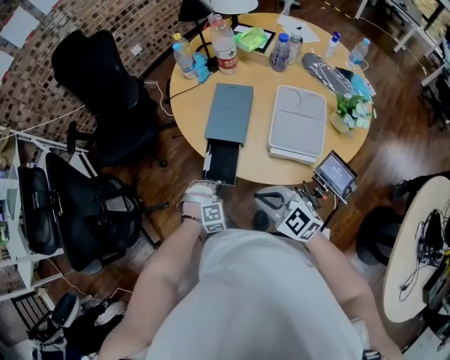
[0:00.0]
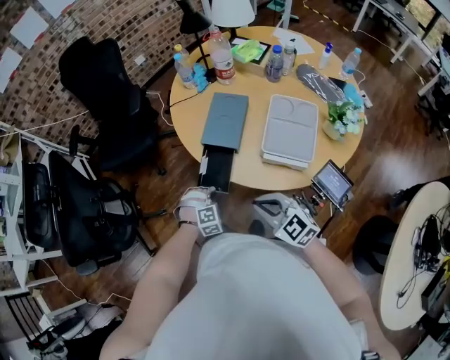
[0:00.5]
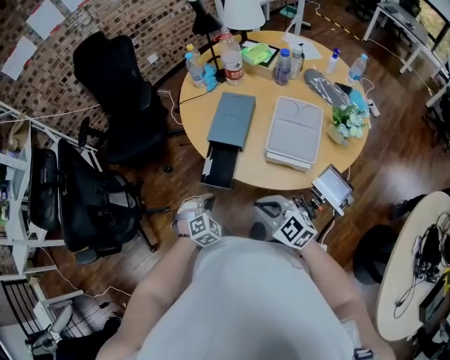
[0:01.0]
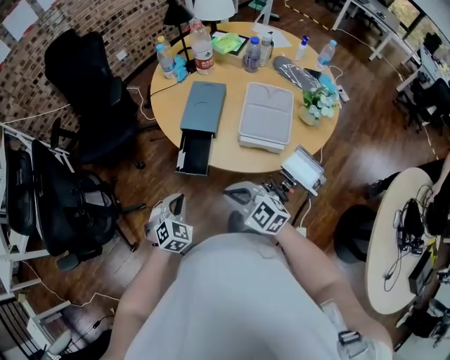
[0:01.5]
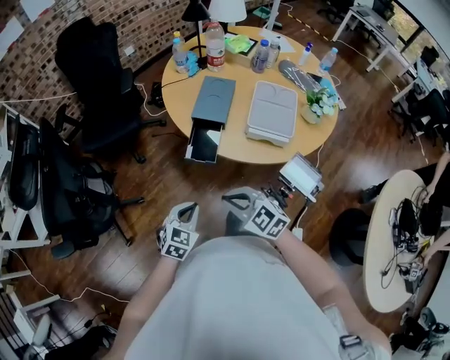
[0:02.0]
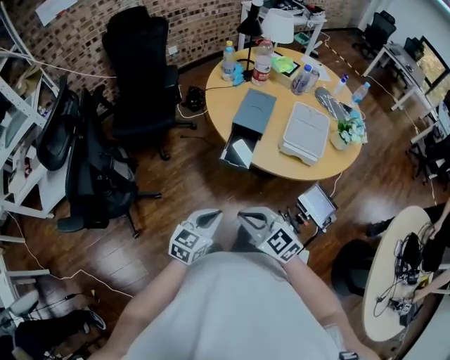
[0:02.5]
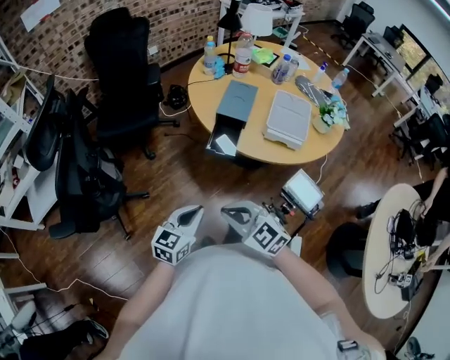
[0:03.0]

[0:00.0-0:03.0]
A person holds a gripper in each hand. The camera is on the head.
0:00.0 to 0:01.5: The right gripper changes place by roughly 5 cm. Meanwhile the left gripper moves upward, backward and to the left, approximately 15 cm, and rolls counterclockwise, seen from behind, by approximately 40 degrees.
0:01.5 to 0:03.0: The left gripper is displaced backward, to the left and upward by roughly 20 cm, and changes its angle by about 50 degrees. The right gripper is displaced to the left and backward by about 20 cm.

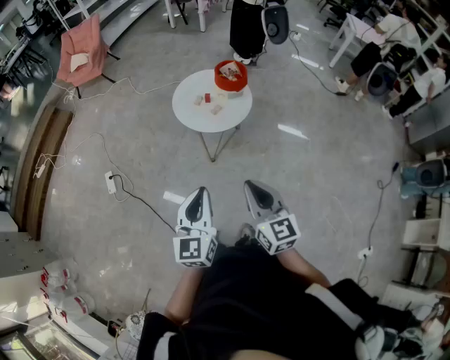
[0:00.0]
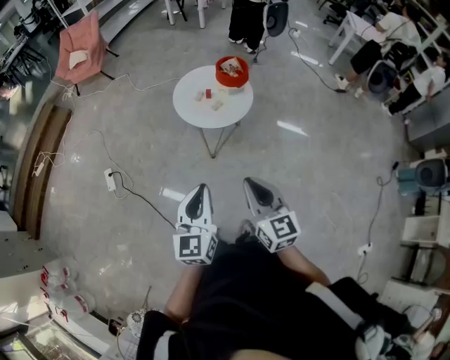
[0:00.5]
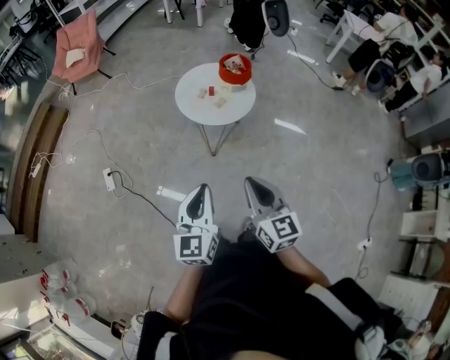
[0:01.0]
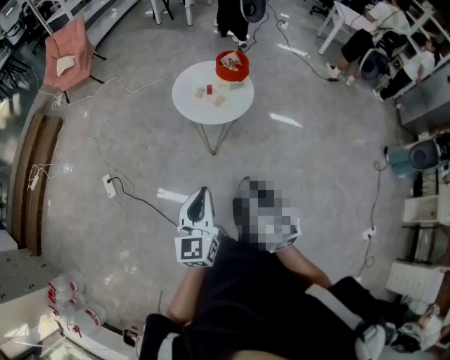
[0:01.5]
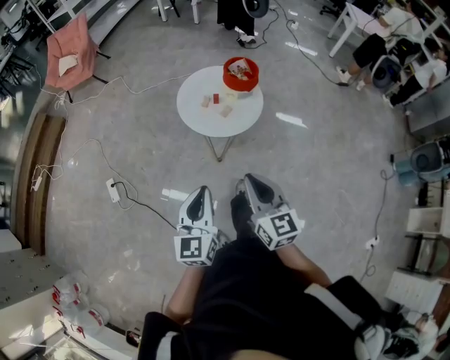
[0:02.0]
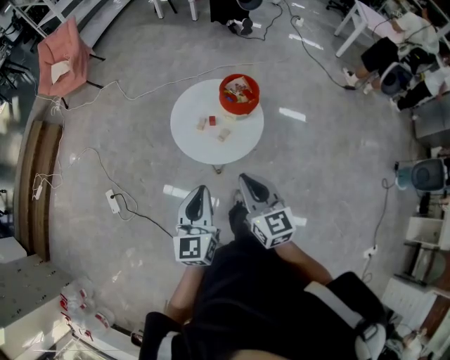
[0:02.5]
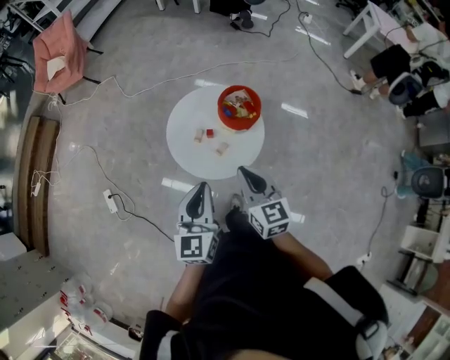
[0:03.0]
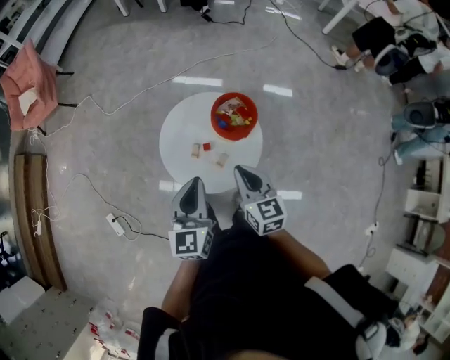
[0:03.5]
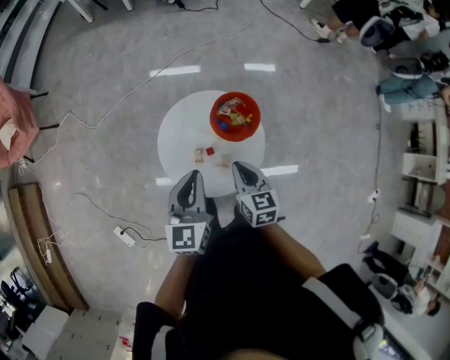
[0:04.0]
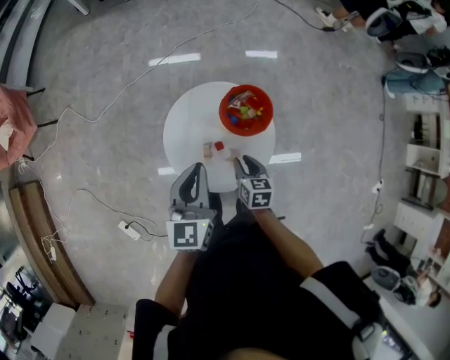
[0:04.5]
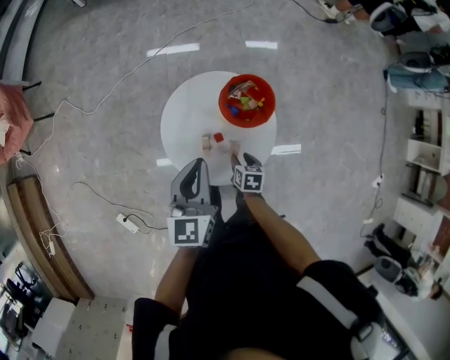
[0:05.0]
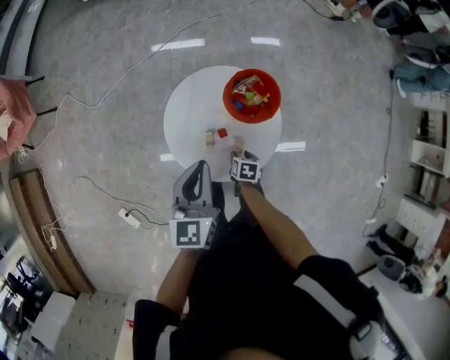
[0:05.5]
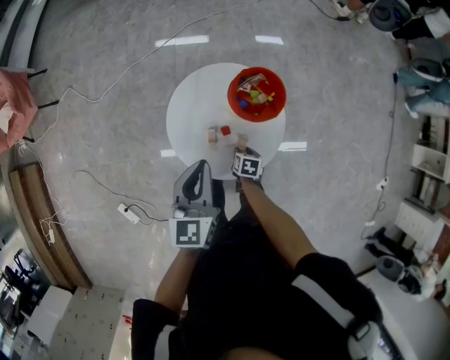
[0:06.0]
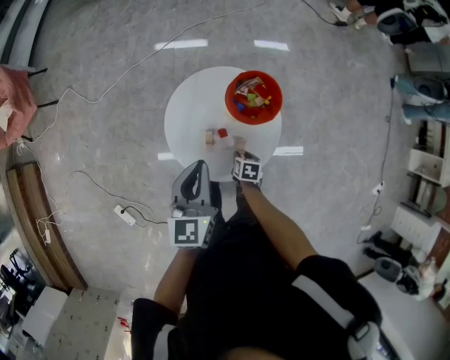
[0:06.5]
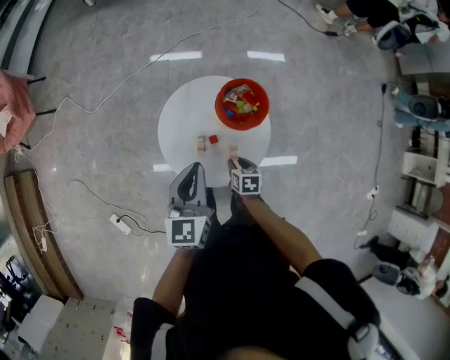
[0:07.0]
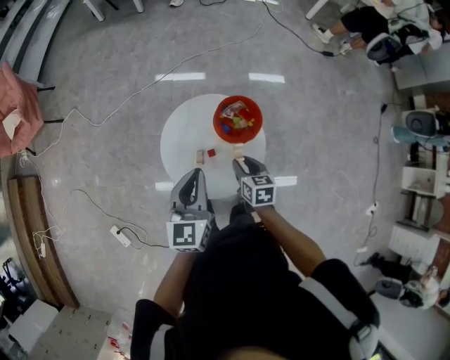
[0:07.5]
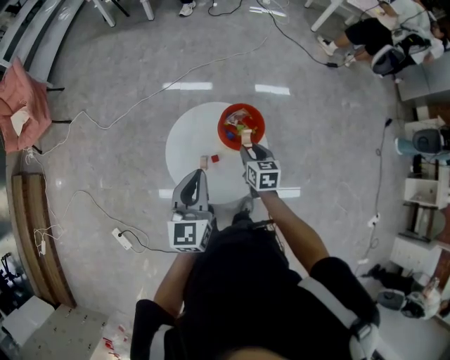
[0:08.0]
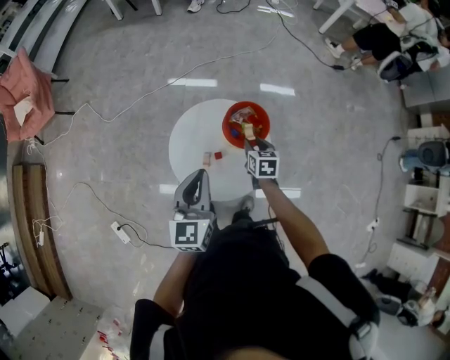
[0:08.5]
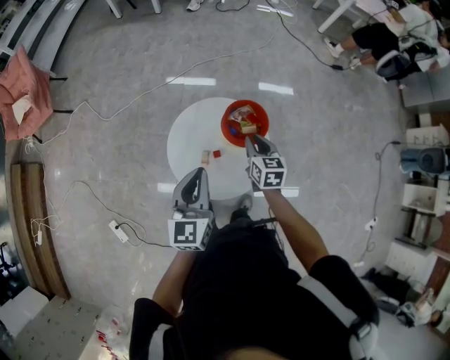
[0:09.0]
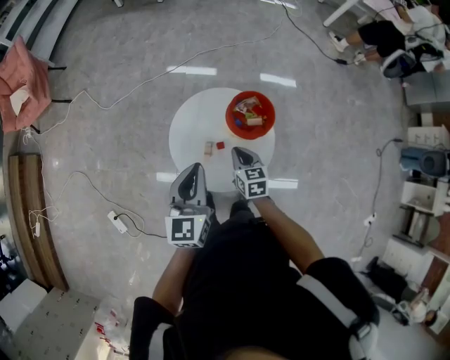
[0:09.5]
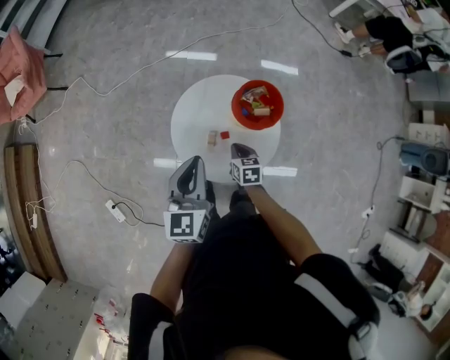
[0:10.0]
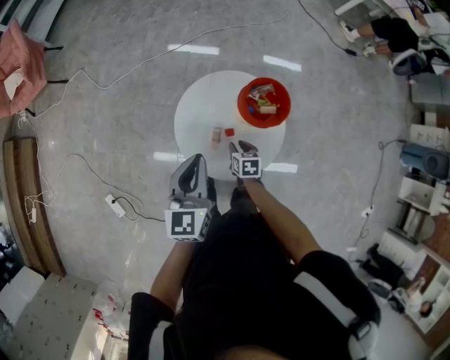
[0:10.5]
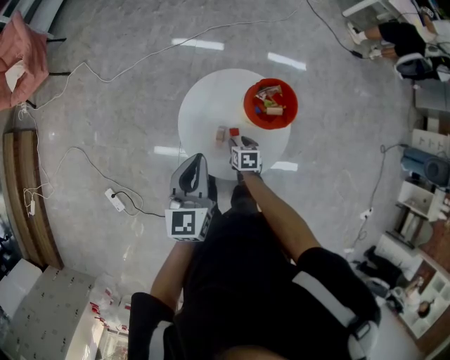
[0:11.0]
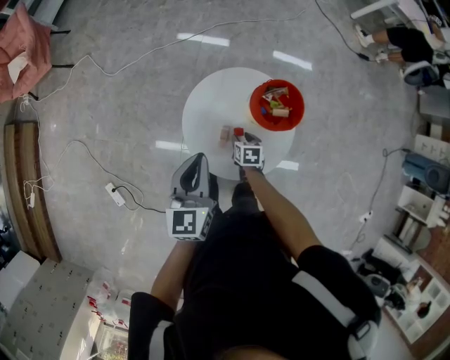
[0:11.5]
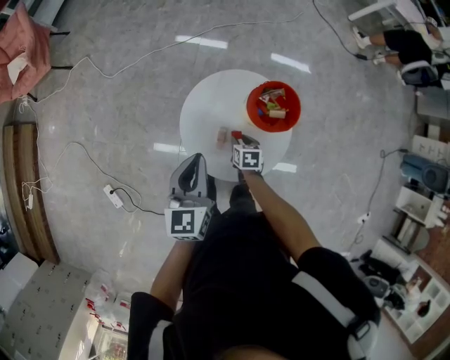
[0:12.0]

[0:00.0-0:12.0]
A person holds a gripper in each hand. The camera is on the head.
0:00.0 to 0:02.0: The grippers both shift forward and to the left by about 10 cm.
0:02.0 to 0:04.0: The right gripper is displaced forward and downward by approximately 40 cm, and rotates about 30 degrees. The left gripper travels forward by some 50 cm, and turns by about 20 degrees.
0:04.0 to 0:06.0: The right gripper travels downward by roughly 30 cm, points its fingers some 40 degrees further downward, and opens up.
0:06.0 to 0:08.0: The right gripper travels upward and forward by roughly 25 cm, and turns by approximately 40 degrees. Meanwhile the left gripper goes about 5 cm upward.
0:08.0 to 0:10.0: The left gripper is displaced to the left by approximately 5 cm; the right gripper goes up and down, roughly 15 cm each way, reversing 2 times, and closes up.
0:10.0 to 0:12.0: The right gripper moves downward, some 5 cm, and opens.

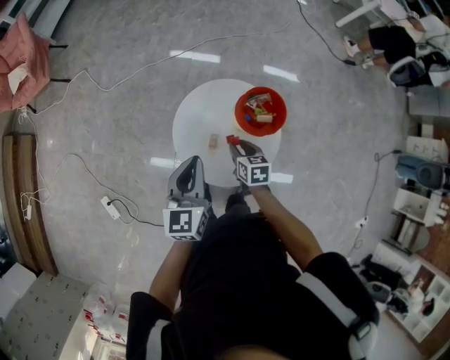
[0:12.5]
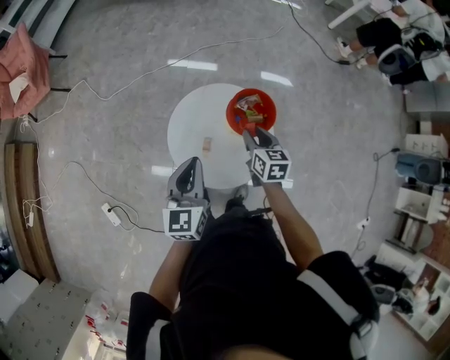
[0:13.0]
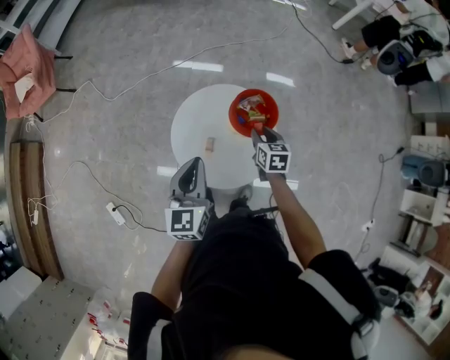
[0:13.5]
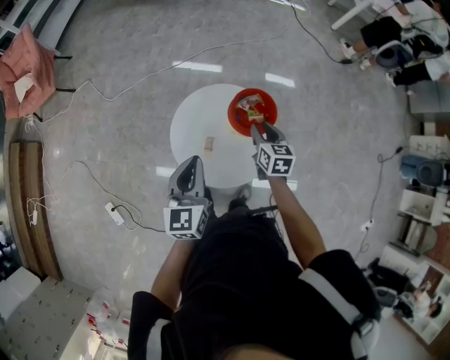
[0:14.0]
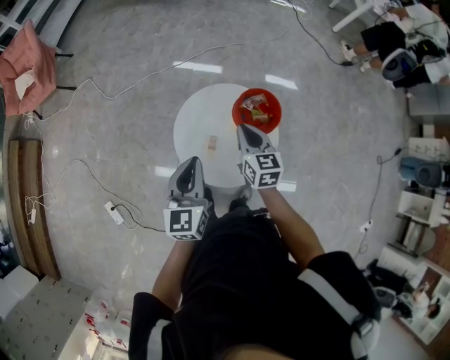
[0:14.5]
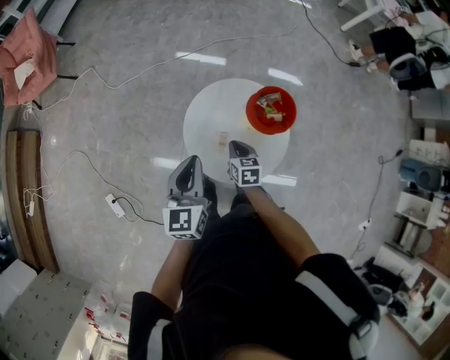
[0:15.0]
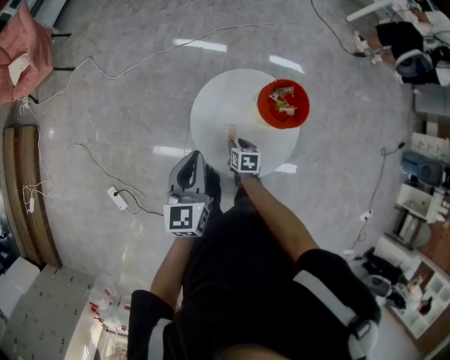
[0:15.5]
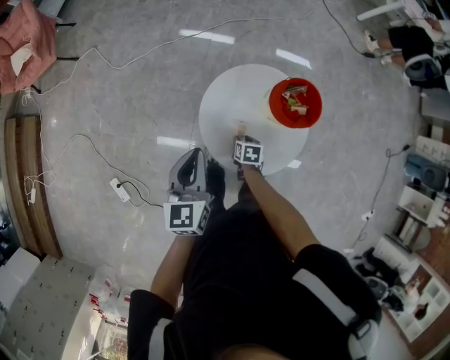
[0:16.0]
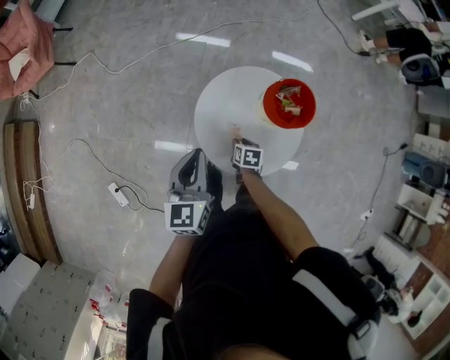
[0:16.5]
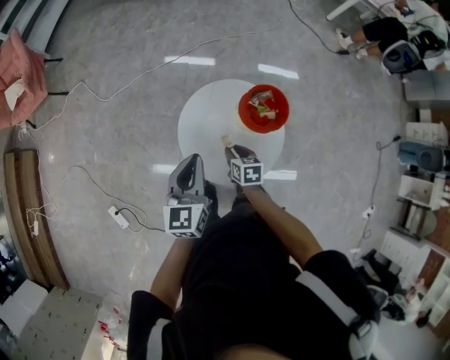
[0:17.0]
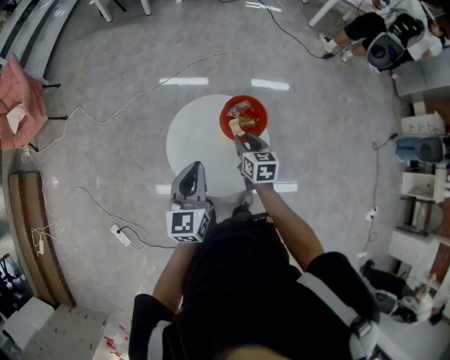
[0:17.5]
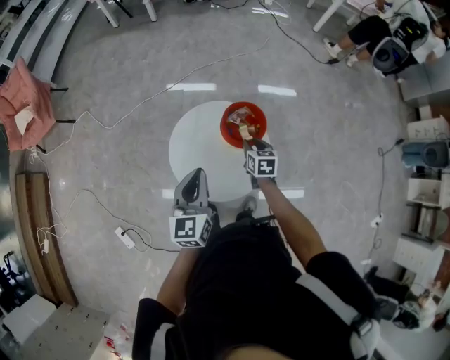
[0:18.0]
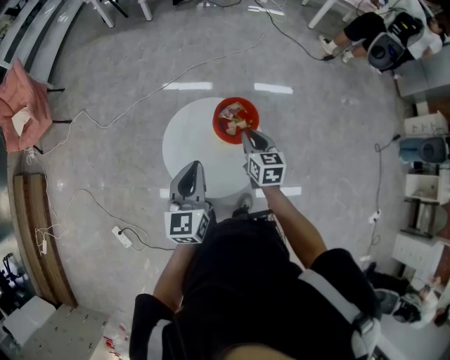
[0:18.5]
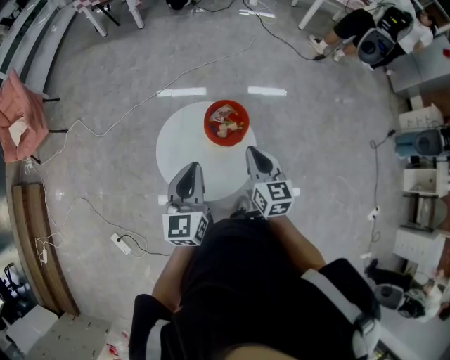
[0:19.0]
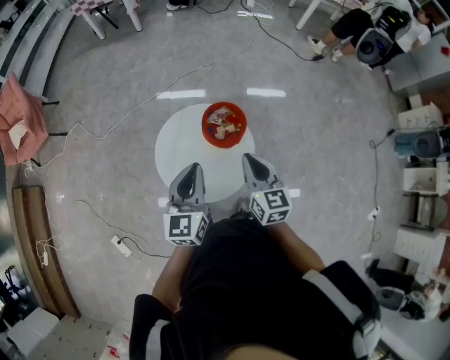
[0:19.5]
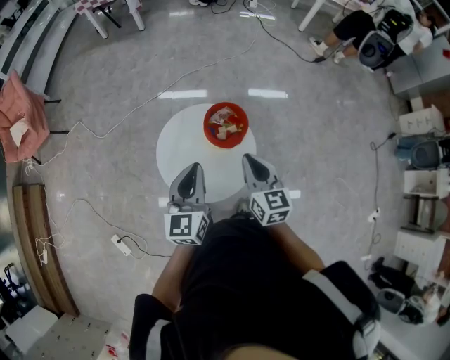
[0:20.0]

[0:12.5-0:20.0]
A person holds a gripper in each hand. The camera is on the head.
0:12.5 to 0:14.5: The right gripper swings up and down, some 15 cm each way, with 2 reversals, rotates some 30 degrees, and closes.
0:14.5 to 0:16.5: The right gripper heads downward, covering approximately 30 cm, angles its fingers downward, by some 40 degrees, and opens. Meanwhile the left gripper is displaced to the left by about 10 cm.
0:16.5 to 0:18.0: The right gripper is displaced to the right, upward and forward by roughly 25 cm, and turns by approximately 20 degrees, while the left gripper moves to the right, about 15 cm.
0:18.0 to 0:20.0: The right gripper is displaced upward and backward by some 20 cm, swivels some 30 degrees, and closes up. Meanwhile the left gripper changes place by roughly 5 cm.

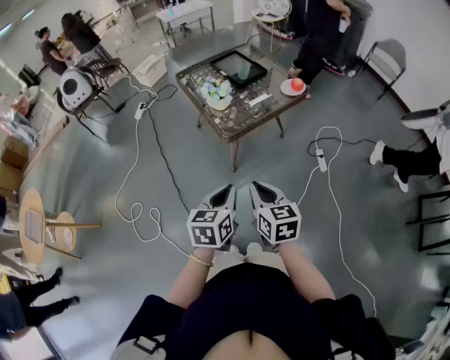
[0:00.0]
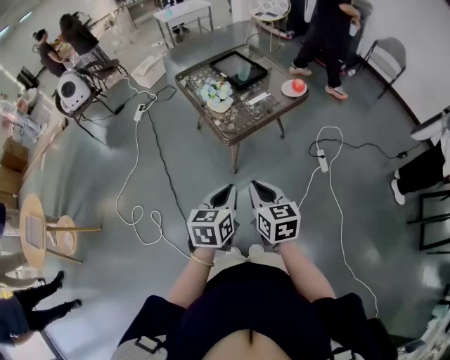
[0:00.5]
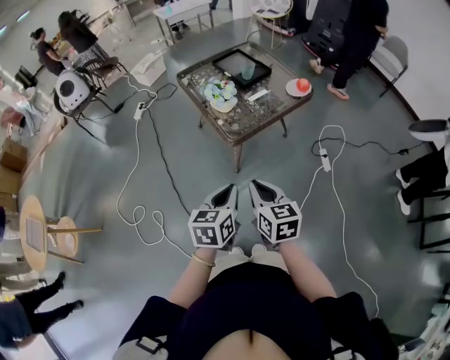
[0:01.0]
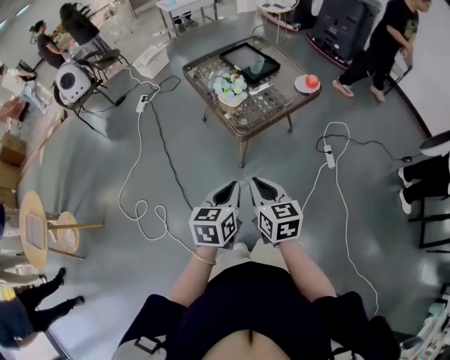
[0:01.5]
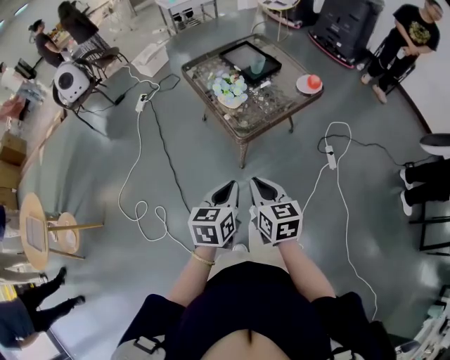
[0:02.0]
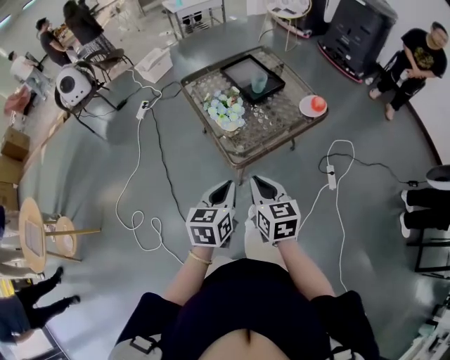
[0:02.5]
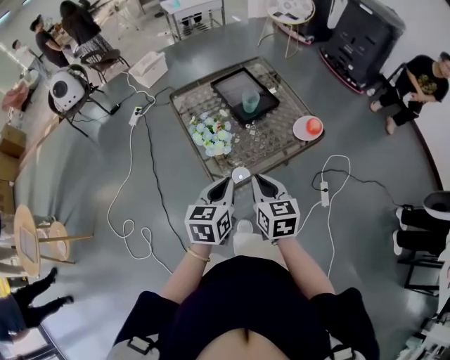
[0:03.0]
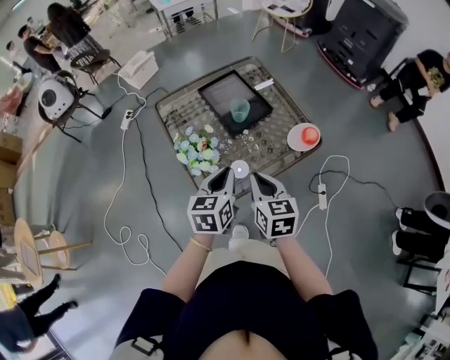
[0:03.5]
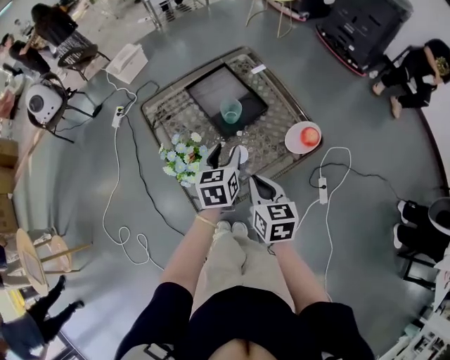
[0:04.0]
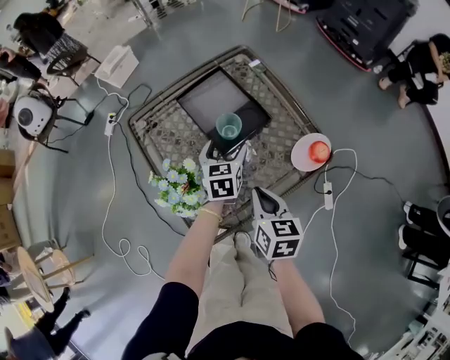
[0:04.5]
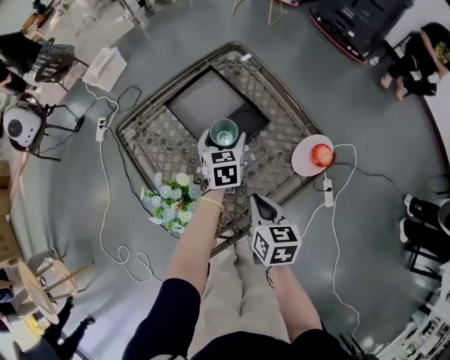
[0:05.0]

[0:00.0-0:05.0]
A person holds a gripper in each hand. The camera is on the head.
0:00.0 to 0:02.5: The two grippers go roughly 20 cm forward.
0:02.5 to 0:05.0: The left gripper is displaced forward by approximately 50 cm, and opens its fingers, while the right gripper shifts approximately 40 cm forward, downward and to the right, and turns by roughly 20 degrees.
